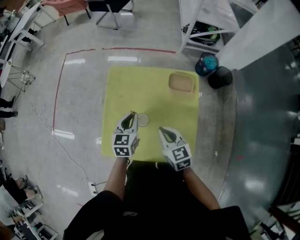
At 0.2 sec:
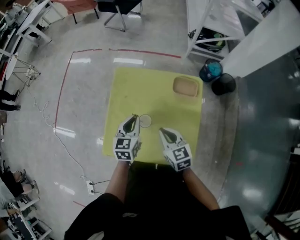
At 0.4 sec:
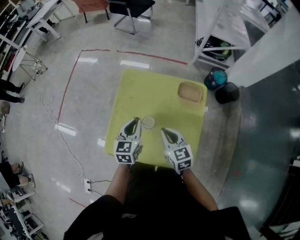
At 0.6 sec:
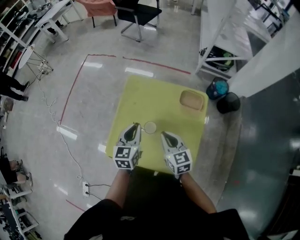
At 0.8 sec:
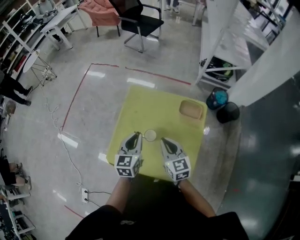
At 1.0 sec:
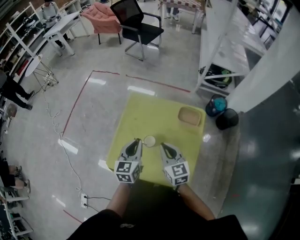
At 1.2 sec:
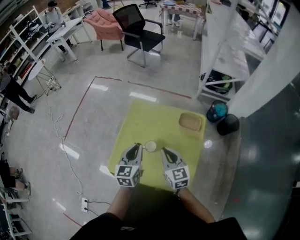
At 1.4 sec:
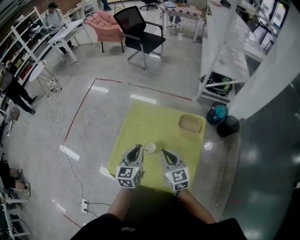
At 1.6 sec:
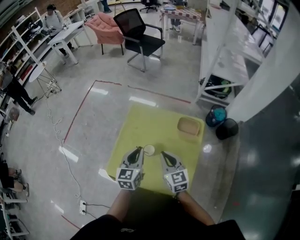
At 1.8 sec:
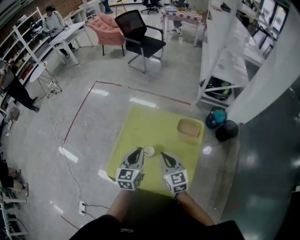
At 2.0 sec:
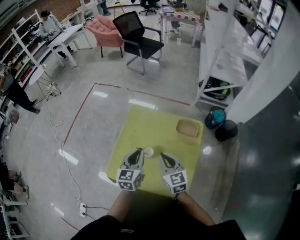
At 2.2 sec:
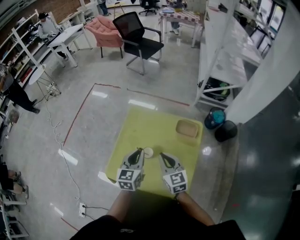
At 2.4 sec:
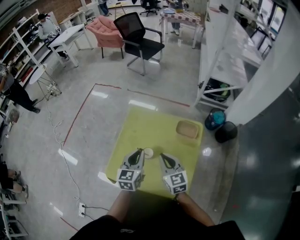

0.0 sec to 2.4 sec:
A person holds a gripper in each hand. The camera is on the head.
0.0 sec to 1.2 sec: The right gripper heads upward, covering approximately 5 cm, while the left gripper heads upward and backward, covering some 10 cm.
1.2 sec to 2.4 sec: The grippers move only a little.

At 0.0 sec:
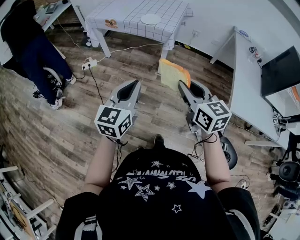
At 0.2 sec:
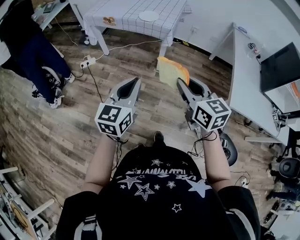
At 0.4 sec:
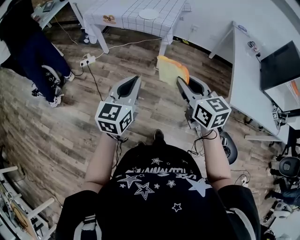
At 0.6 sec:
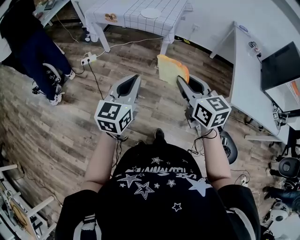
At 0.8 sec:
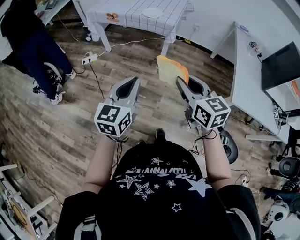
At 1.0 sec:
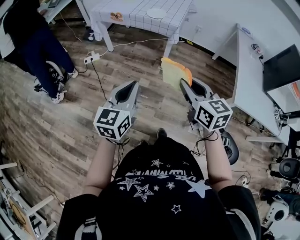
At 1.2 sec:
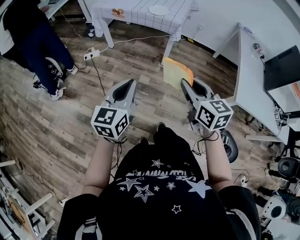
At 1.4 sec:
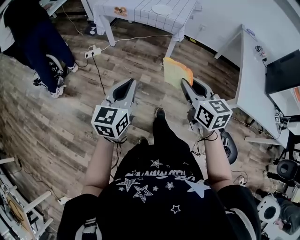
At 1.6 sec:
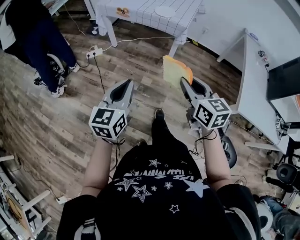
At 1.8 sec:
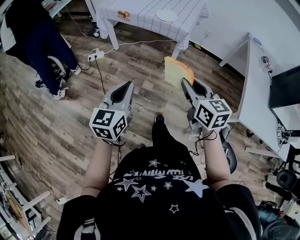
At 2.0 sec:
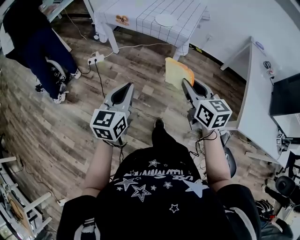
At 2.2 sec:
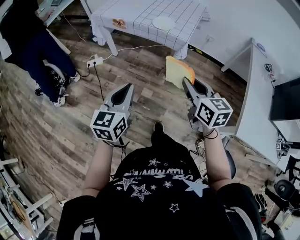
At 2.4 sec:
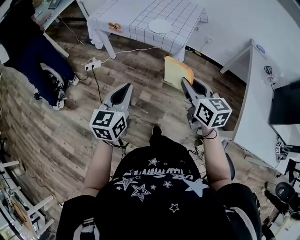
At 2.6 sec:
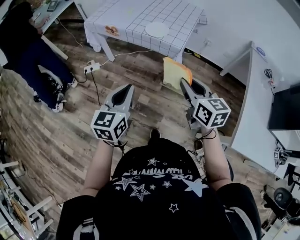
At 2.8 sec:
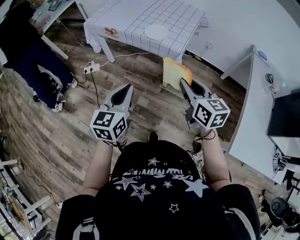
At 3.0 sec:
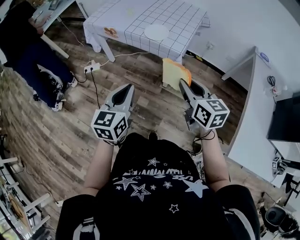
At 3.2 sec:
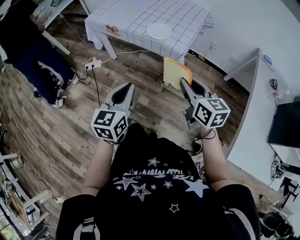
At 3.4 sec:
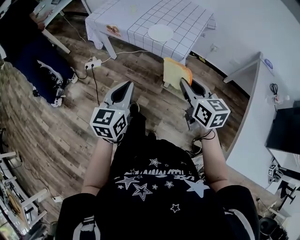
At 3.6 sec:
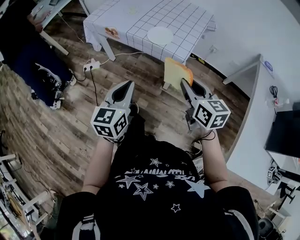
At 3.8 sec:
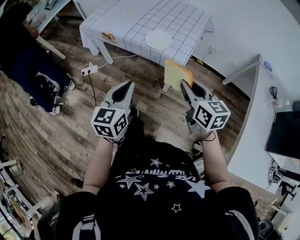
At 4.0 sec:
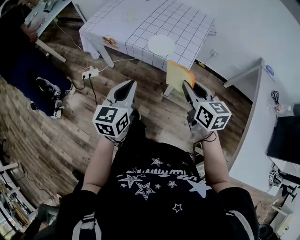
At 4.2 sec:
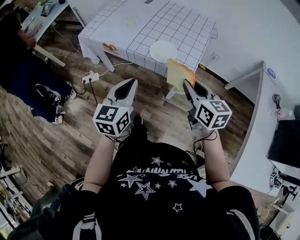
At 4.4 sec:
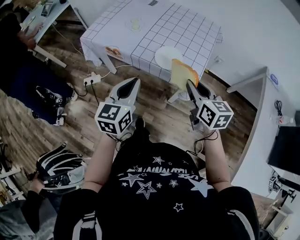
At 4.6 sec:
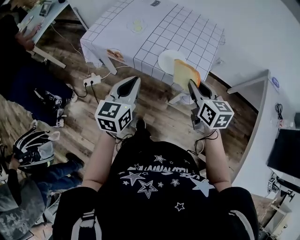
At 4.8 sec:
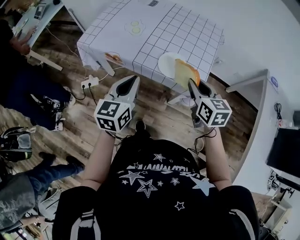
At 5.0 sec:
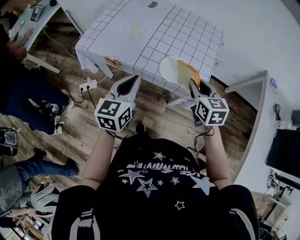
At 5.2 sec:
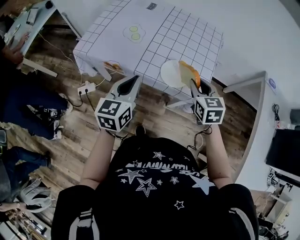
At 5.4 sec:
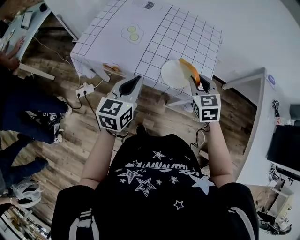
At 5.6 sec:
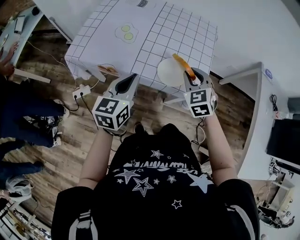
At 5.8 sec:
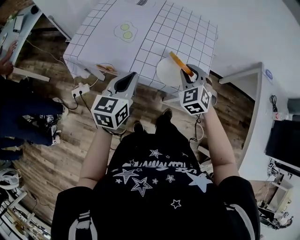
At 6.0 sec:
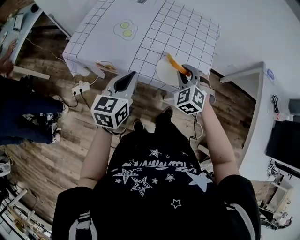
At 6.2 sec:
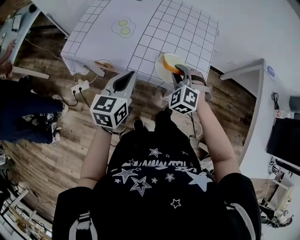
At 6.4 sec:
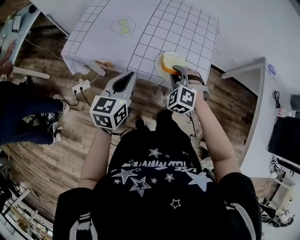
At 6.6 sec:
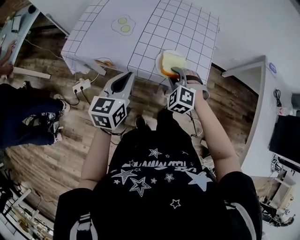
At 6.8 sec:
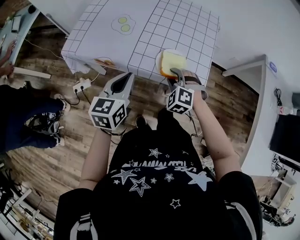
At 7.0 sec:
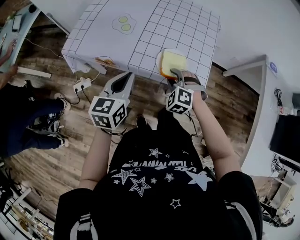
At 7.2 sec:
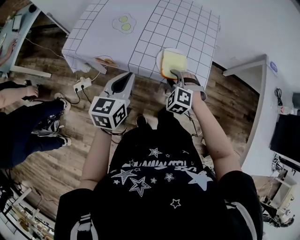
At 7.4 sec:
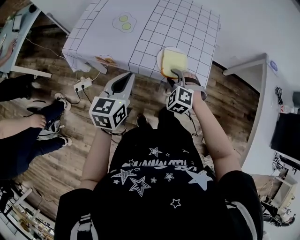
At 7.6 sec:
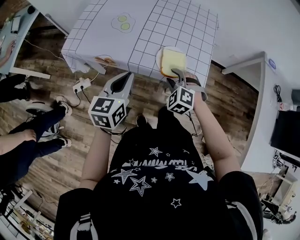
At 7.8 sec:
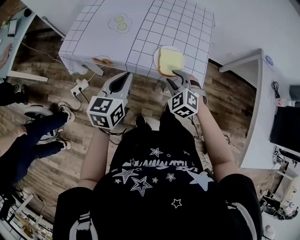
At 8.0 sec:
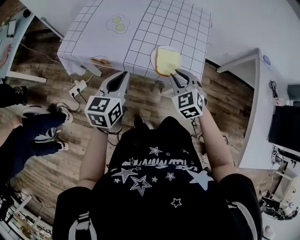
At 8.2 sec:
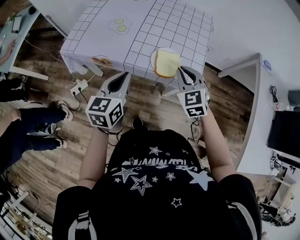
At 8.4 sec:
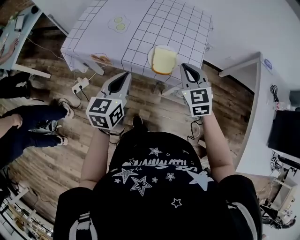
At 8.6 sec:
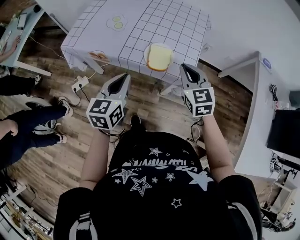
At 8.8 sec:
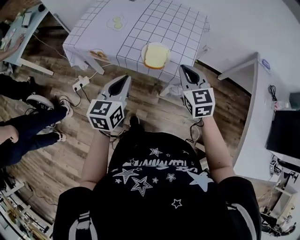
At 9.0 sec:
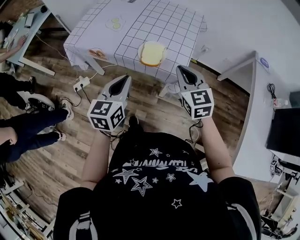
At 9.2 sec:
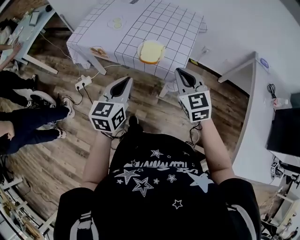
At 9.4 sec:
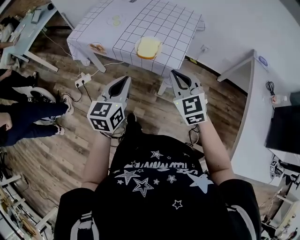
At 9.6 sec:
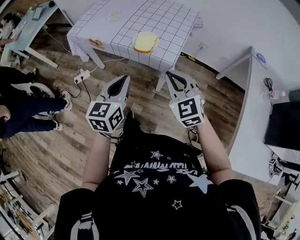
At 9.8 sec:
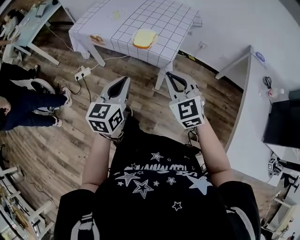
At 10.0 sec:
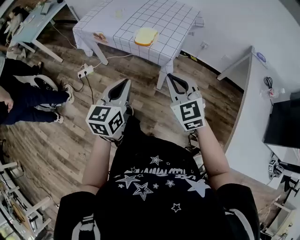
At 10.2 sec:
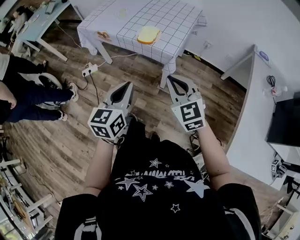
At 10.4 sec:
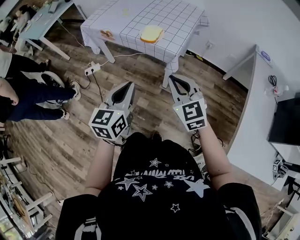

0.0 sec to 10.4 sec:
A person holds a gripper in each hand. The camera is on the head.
0.0 sec to 1.4 sec: The left gripper travels to the left by about 10 cm. Meanwhile the right gripper goes some 5 cm to the left.
1.4 sec to 3.0 sec: The grippers both shift forward by roughly 25 cm.
3.0 sec to 4.4 sec: Both grippers travel together forward, some 25 cm.
4.4 sec to 6.0 sec: The right gripper is displaced forward, to the left and downward by some 20 cm, and twists some 60 degrees counterclockwise, seen from behind. The left gripper shifts about 15 cm forward and to the left.
6.0 sec to 7.4 sec: The right gripper moves downward and backward, about 10 cm.
7.4 sec to 9.0 sec: The right gripper goes about 20 cm upward and to the right, angles its fingers upward, by some 30 degrees, and closes, while the left gripper moves backward and to the right, about 15 cm.
9.0 sec to 10.4 sec: The two grippers go some 20 cm backward.

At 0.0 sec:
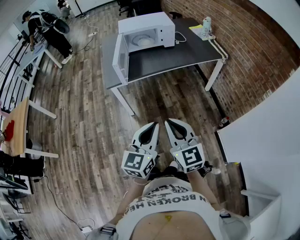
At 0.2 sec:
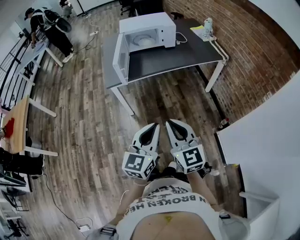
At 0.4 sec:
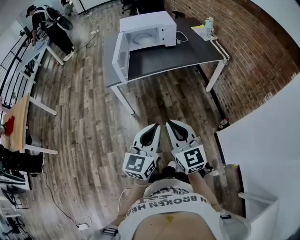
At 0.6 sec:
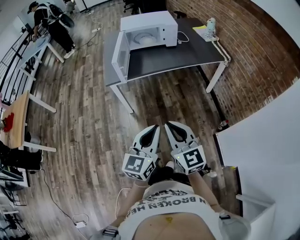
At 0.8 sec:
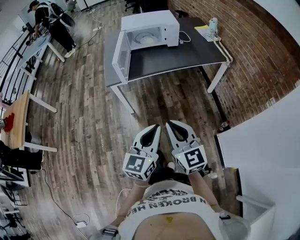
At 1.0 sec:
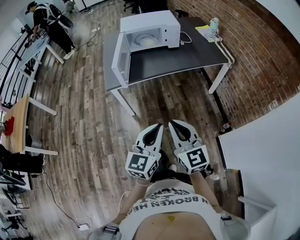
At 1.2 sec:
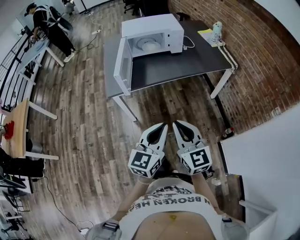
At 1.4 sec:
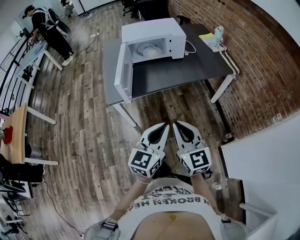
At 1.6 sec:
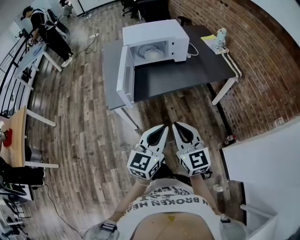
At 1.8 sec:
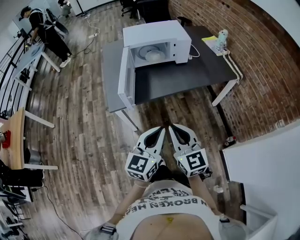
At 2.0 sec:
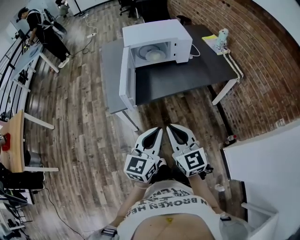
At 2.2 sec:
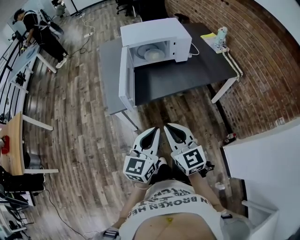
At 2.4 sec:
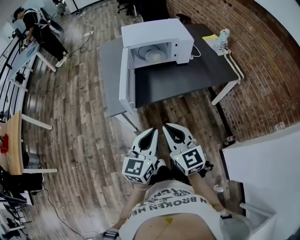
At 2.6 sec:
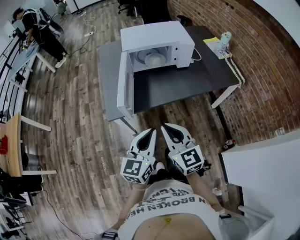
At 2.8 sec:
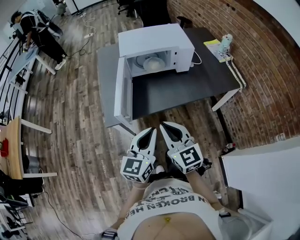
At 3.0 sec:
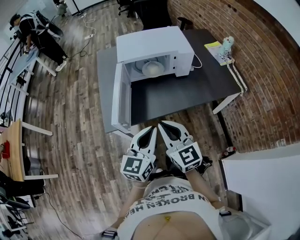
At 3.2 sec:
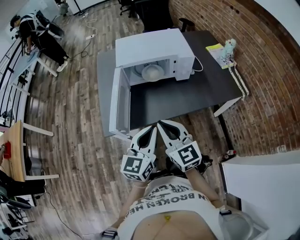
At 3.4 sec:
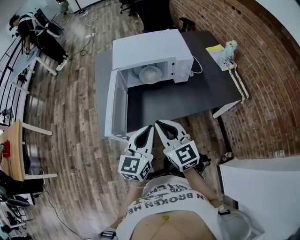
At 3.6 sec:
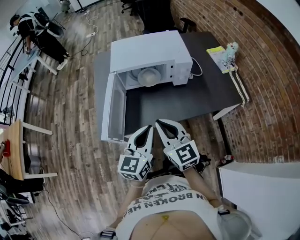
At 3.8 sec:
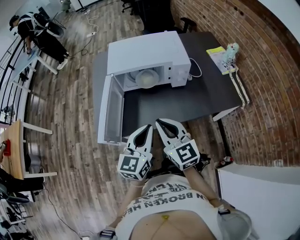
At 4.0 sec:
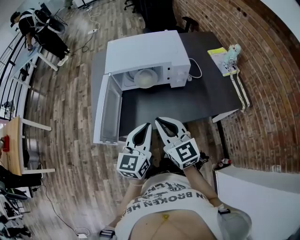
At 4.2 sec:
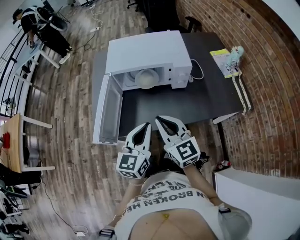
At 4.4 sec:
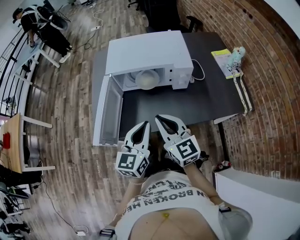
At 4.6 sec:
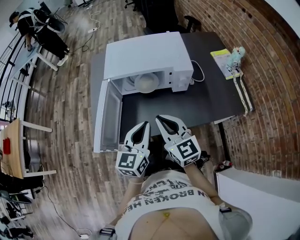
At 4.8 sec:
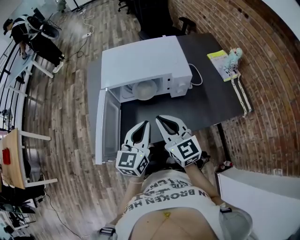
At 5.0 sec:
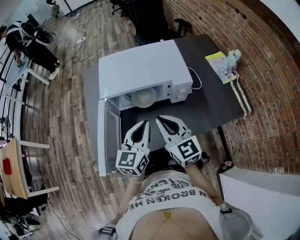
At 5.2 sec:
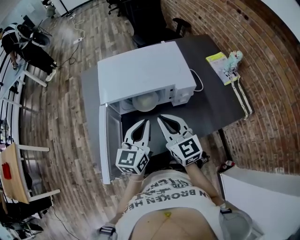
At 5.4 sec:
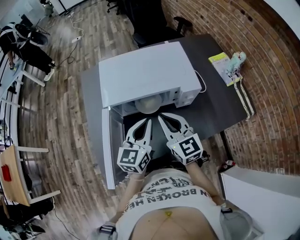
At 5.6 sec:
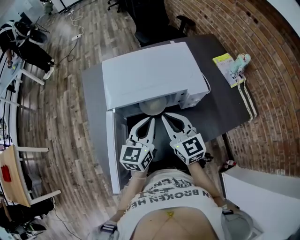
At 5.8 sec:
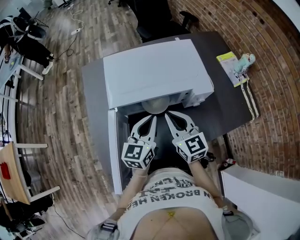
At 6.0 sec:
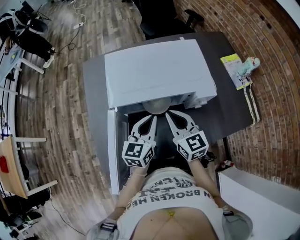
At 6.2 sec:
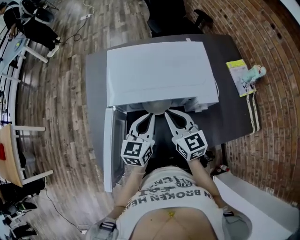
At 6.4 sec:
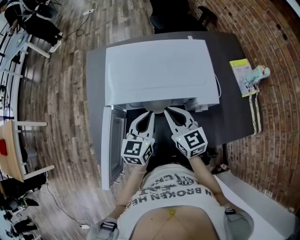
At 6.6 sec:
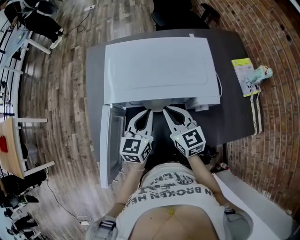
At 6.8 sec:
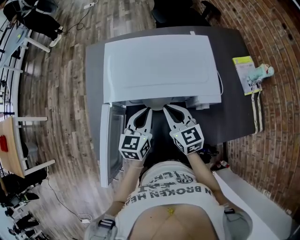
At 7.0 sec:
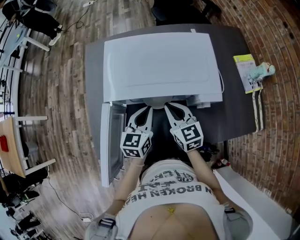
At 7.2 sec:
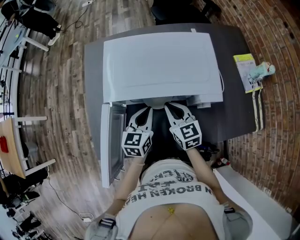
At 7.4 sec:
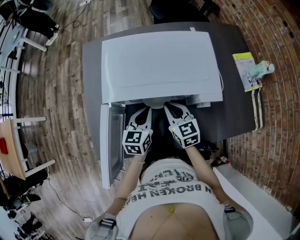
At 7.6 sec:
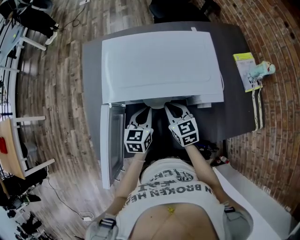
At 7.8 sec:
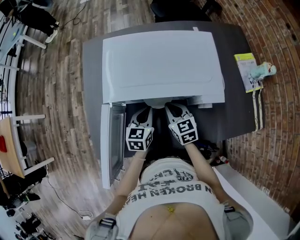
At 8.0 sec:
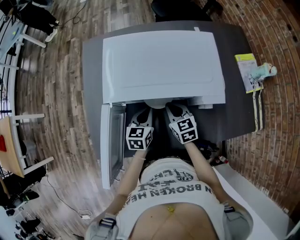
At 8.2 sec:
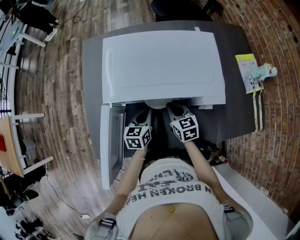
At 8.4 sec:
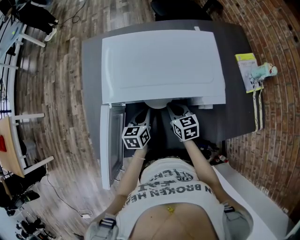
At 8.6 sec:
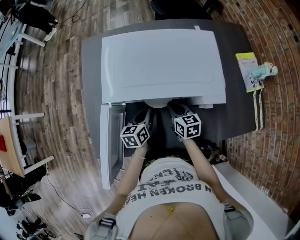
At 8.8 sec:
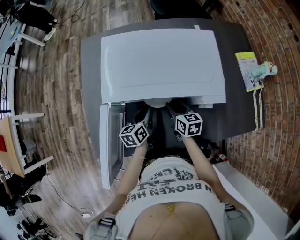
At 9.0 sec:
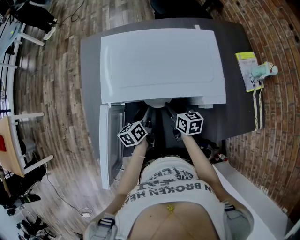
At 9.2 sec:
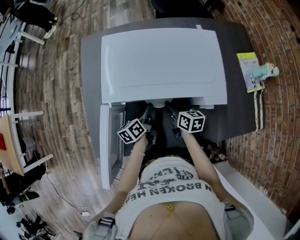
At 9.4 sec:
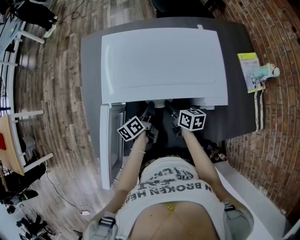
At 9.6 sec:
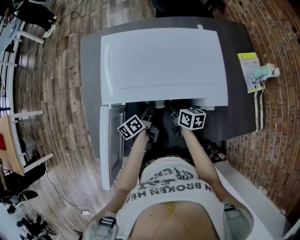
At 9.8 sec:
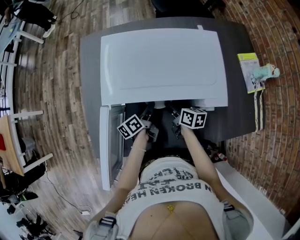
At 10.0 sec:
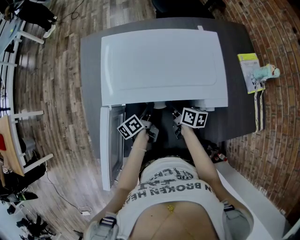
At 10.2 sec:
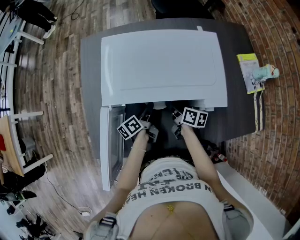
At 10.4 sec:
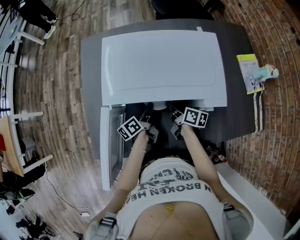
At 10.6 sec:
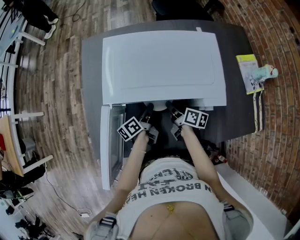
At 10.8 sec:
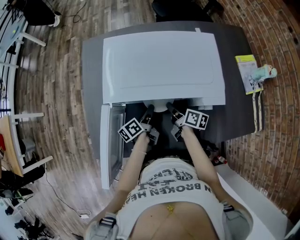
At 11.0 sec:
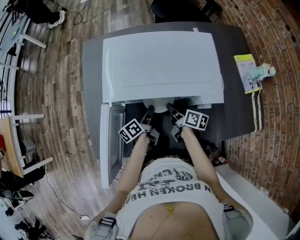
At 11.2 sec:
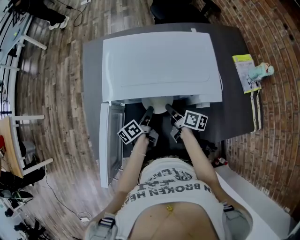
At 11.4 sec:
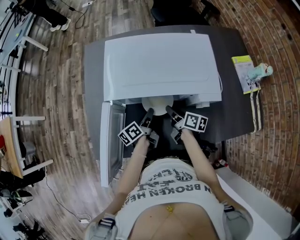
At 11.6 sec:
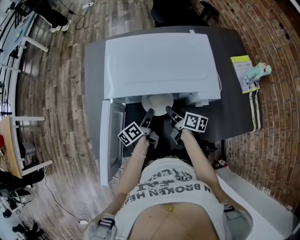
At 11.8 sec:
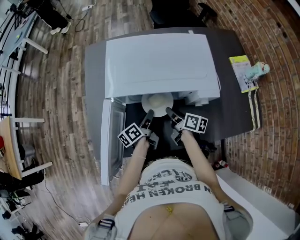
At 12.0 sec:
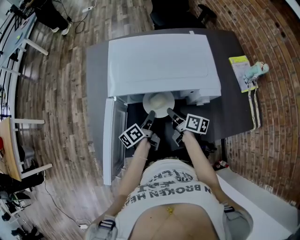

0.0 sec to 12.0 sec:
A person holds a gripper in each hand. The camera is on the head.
0.0 sec to 1.6 sec: Both grippers travel together forward, about 20 cm.
1.6 sec to 3.0 sec: Both grippers move forward, roughly 20 cm.
3.0 sec to 4.4 sec: Both grippers travel together forward and to the right, roughly 15 cm.
4.4 sec to 6.0 sec: The two grippers go approximately 25 cm forward.
6.0 sec to 7.6 sec: Both grippers move downward, about 10 cm.
7.6 sec to 9.0 sec: The two grippers go approximately 5 cm downward. The right gripper turns by about 30 degrees, and opens up. The left gripper turns by roughly 30 degrees, and opens its fingers.
9.0 sec to 10.4 sec: The right gripper changes its angle by about 30 degrees, and closes its fingers. Meanwhile the left gripper turns by approximately 20 degrees, and closes.
10.4 sec to 12.0 sec: Both grippers move backward, about 5 cm.
